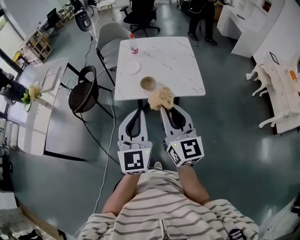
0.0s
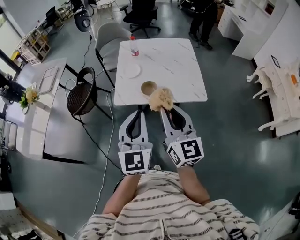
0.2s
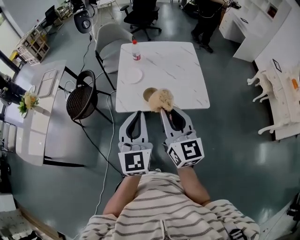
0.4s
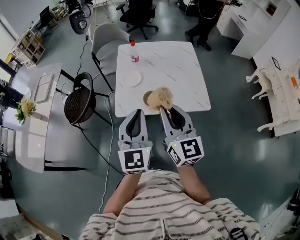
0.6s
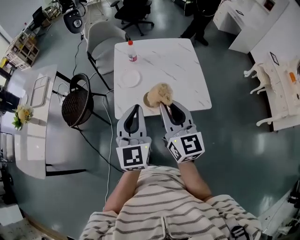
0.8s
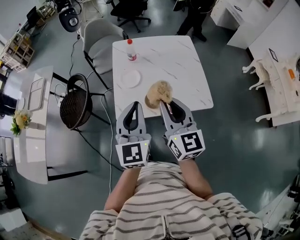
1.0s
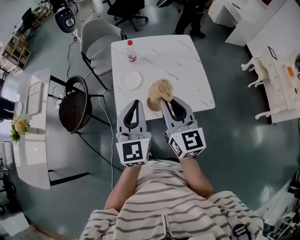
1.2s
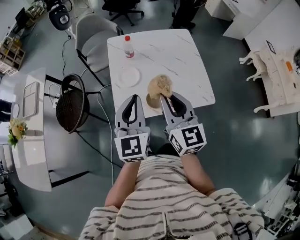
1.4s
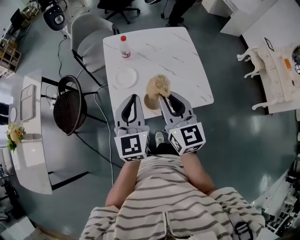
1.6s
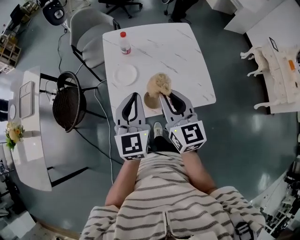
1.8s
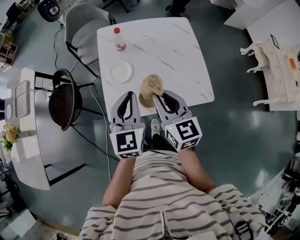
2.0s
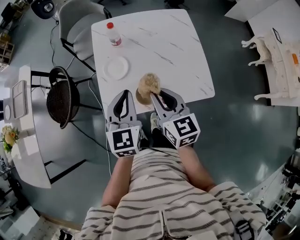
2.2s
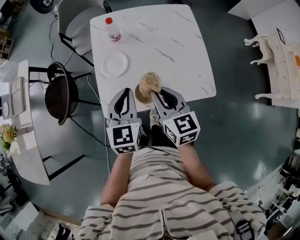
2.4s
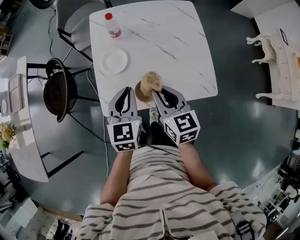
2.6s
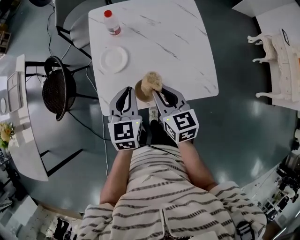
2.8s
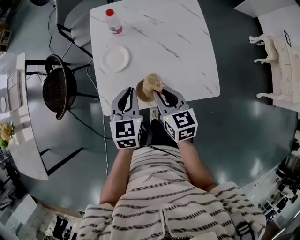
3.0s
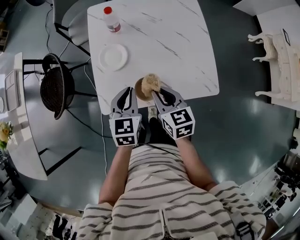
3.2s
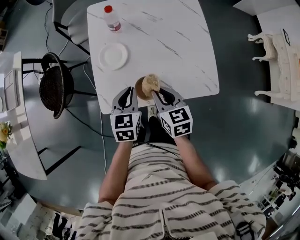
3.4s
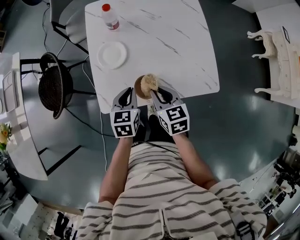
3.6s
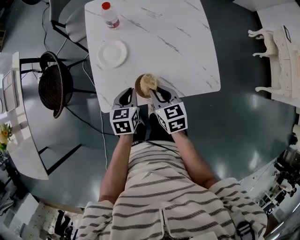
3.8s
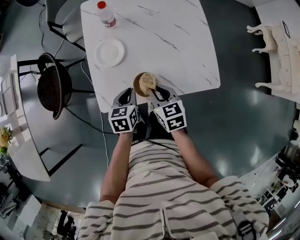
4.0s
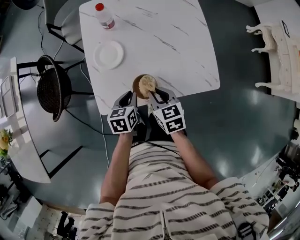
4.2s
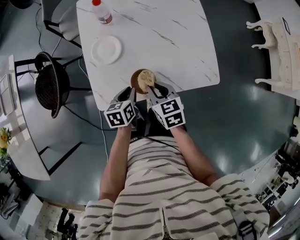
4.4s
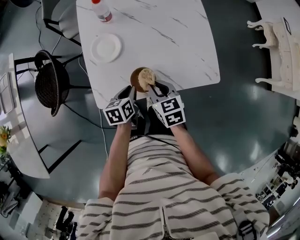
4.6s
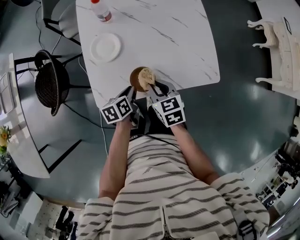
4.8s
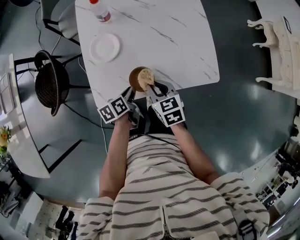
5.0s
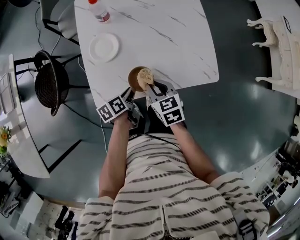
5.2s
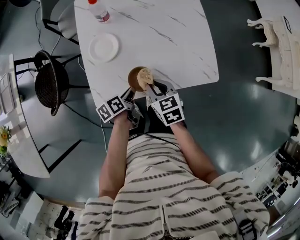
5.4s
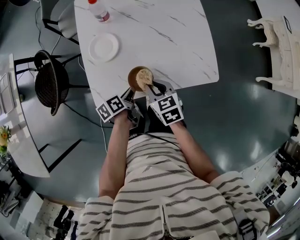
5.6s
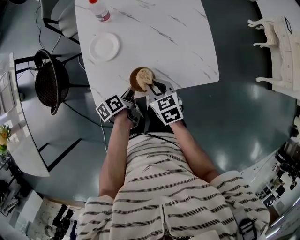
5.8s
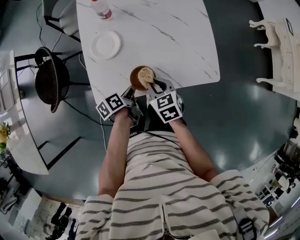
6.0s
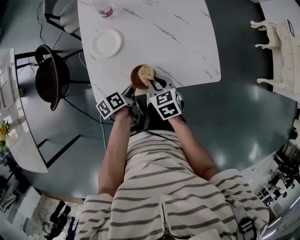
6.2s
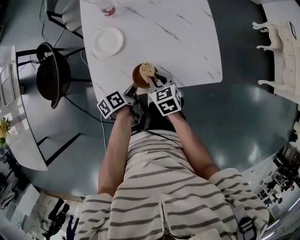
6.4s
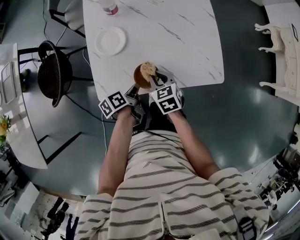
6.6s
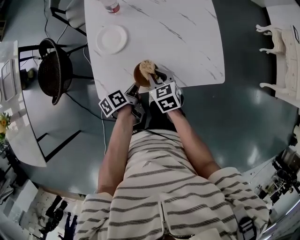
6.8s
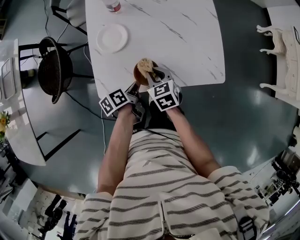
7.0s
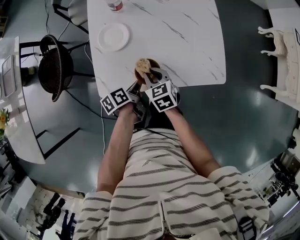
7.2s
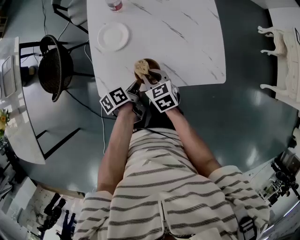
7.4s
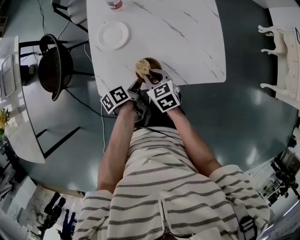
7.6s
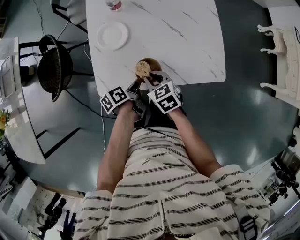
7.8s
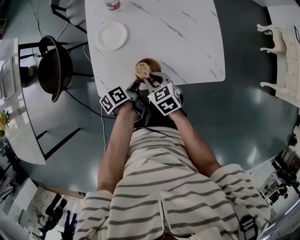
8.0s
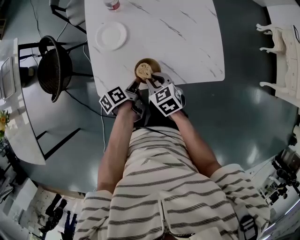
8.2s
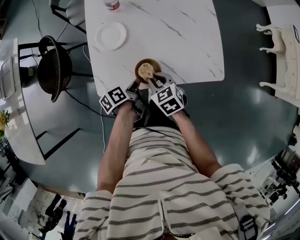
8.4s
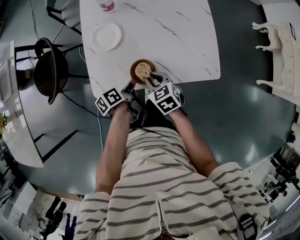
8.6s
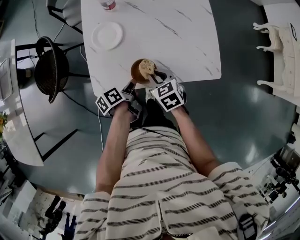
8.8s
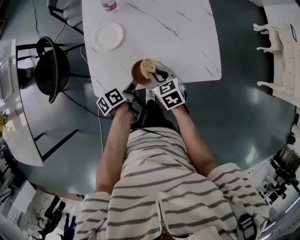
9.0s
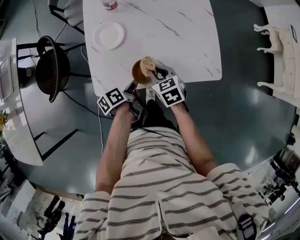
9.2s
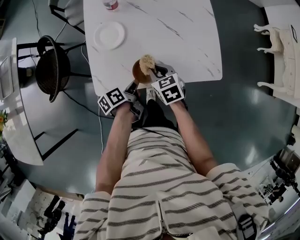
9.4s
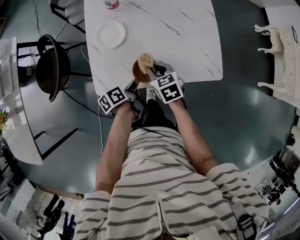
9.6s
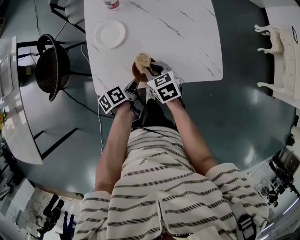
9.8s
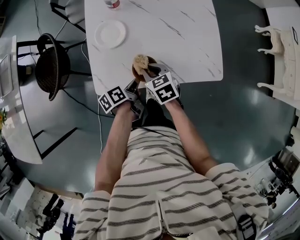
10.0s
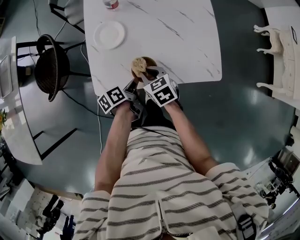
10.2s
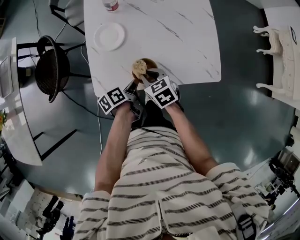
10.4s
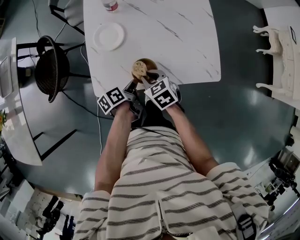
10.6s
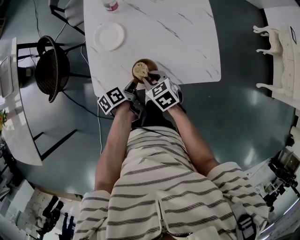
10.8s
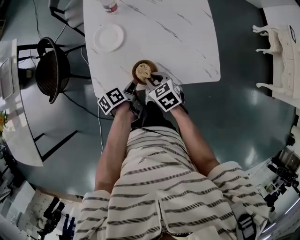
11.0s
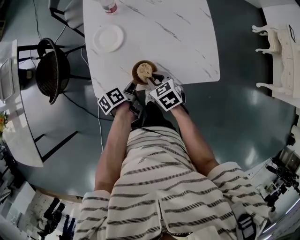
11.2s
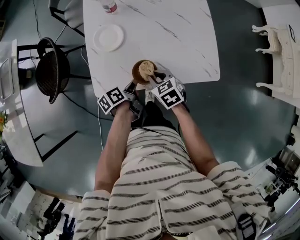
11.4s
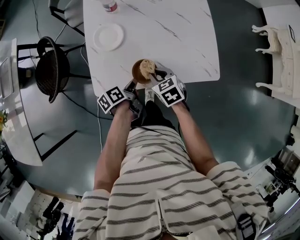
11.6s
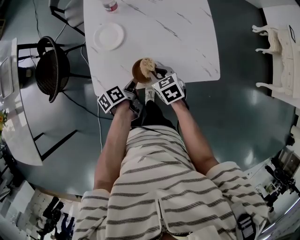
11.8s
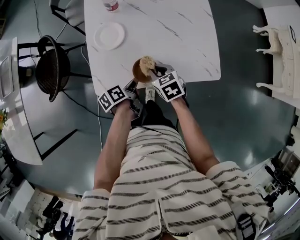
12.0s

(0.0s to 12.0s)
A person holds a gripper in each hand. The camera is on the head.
0.0s - 1.6s: Both grippers move forward, about 30 cm.
1.6s - 3.0s: Both grippers travel together downward, roughly 20 cm. The right gripper rotates approximately 30 degrees. Meanwhile the left gripper swivels some 20 degrees.
3.0s - 4.4s: The left gripper heads downward, covering roughly 15 cm, and swivels approximately 30 degrees; the right gripper shifts roughly 10 cm downward.
4.4s - 6.0s: The left gripper swivels about 40 degrees.
6.0s - 12.0s: The grippers move only a little.

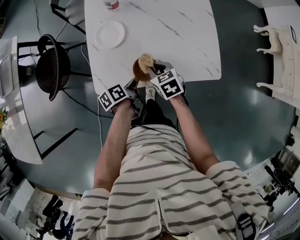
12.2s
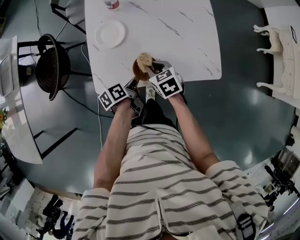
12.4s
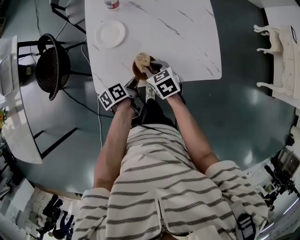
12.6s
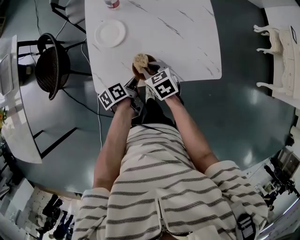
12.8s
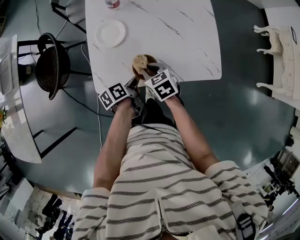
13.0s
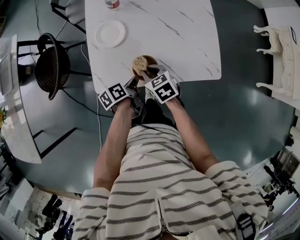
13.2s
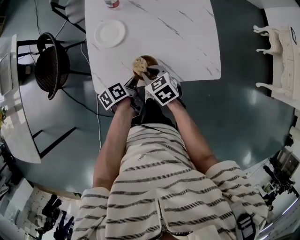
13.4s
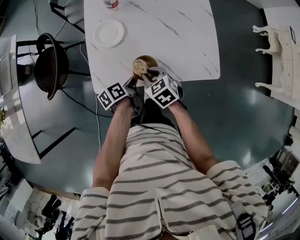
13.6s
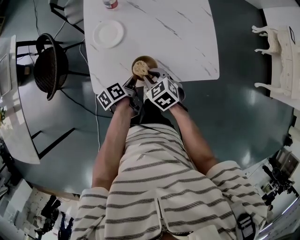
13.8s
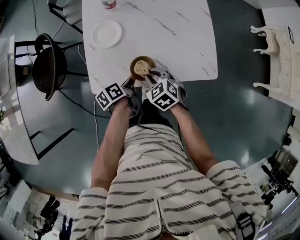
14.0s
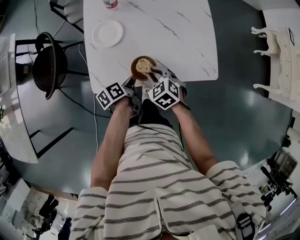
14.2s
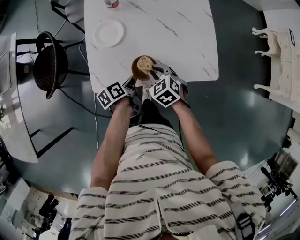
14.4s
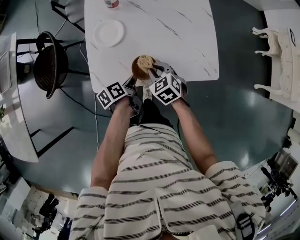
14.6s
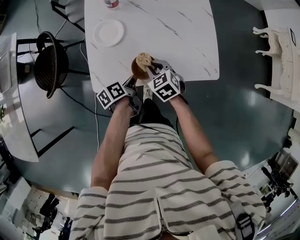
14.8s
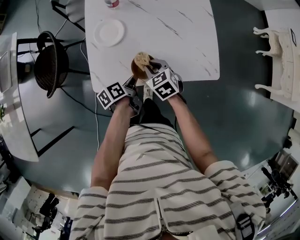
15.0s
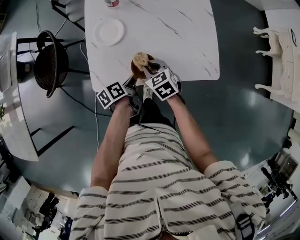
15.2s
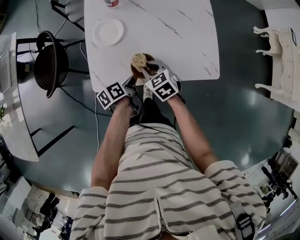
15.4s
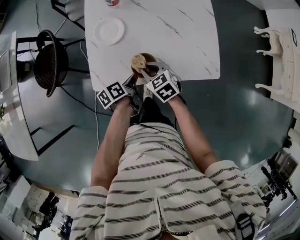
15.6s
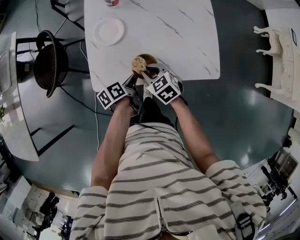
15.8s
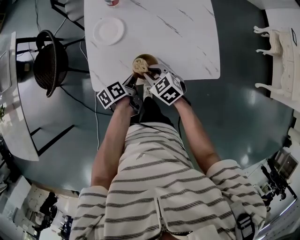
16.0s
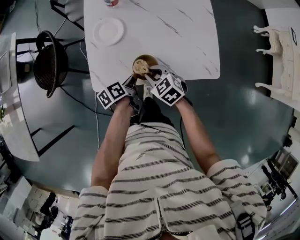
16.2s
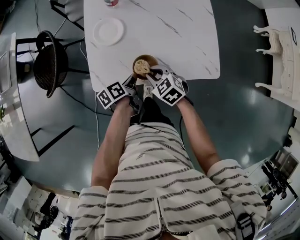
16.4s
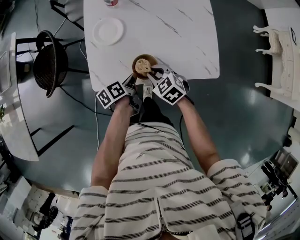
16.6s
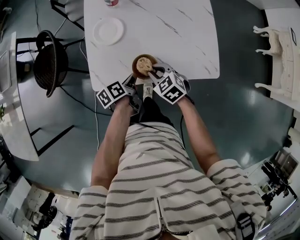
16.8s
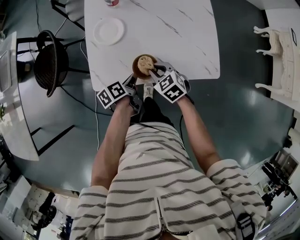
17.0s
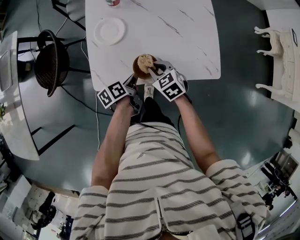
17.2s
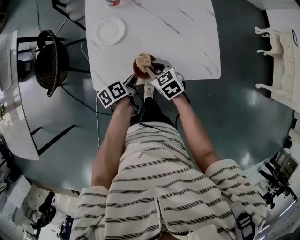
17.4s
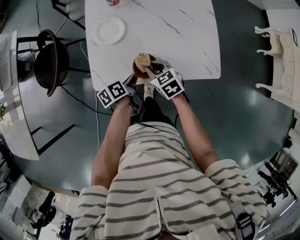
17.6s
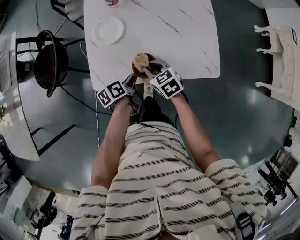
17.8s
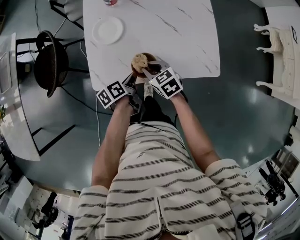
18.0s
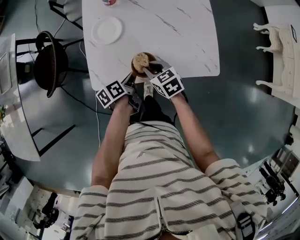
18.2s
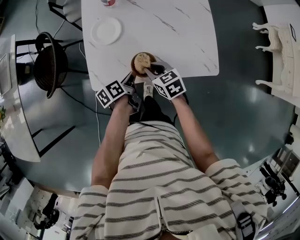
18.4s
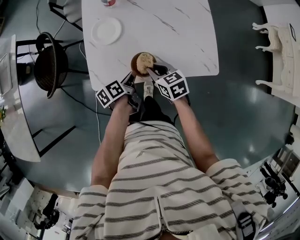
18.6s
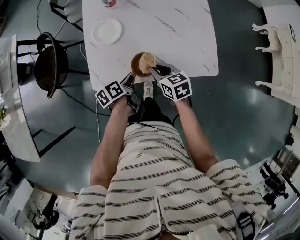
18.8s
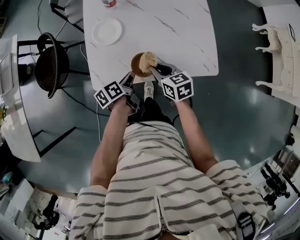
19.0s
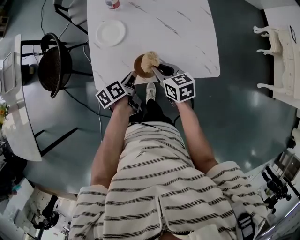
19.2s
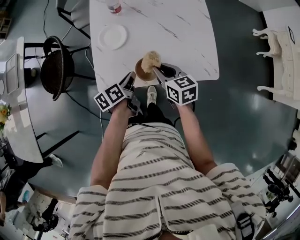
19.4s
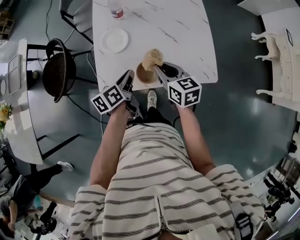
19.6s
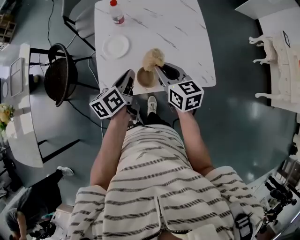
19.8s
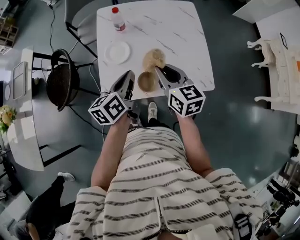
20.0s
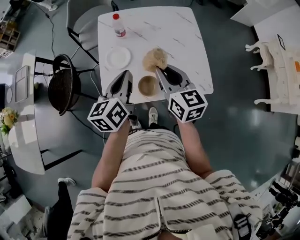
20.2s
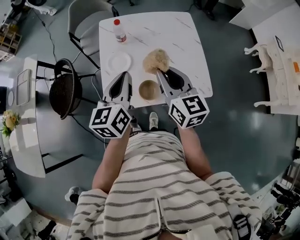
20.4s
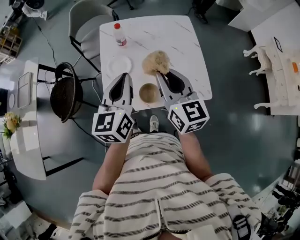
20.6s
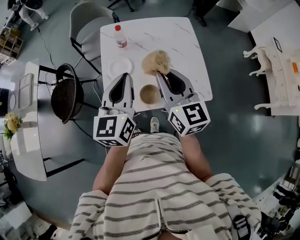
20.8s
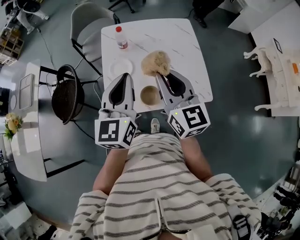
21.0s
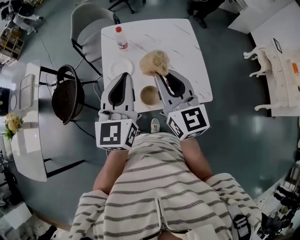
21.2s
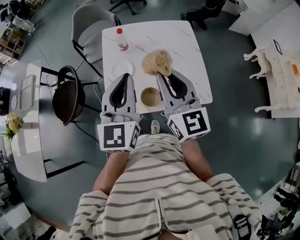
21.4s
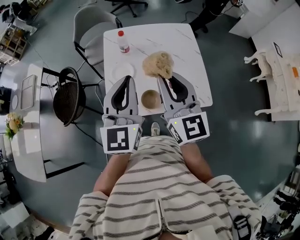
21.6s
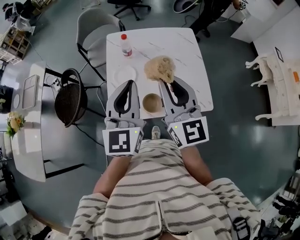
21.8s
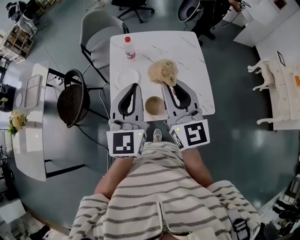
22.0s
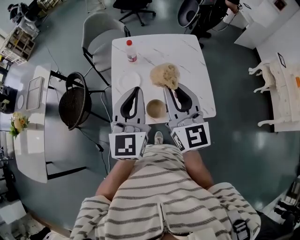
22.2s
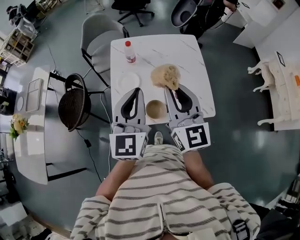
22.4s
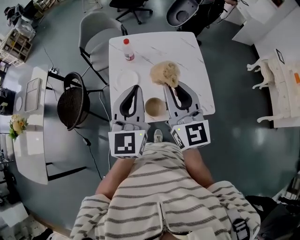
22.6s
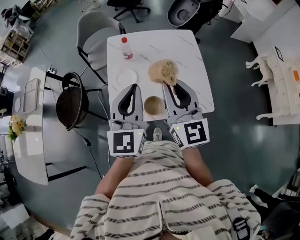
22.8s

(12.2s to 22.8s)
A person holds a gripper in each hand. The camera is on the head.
12.2s - 13.8s: The grippers move only a little.
13.8s - 16.8s: The grippers make only small movements.
16.8s - 18.2s: The right gripper changes its angle by roughly 20 degrees.
18.2s - 19.8s: Both grippers travel together upward, approximately 20 cm. The right gripper rotates roughly 30 degrees. Meanwhile the left gripper changes its angle by about 30 degrees.
19.8s - 21.2s: The grippers both shift upward by approximately 20 cm. The right gripper turns by roughly 30 degrees. Meanwhile the left gripper rolls clockwise, seen from behind, by approximately 40 degrees.
21.2s - 22.8s: The grippers make only small movements.

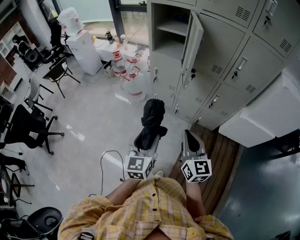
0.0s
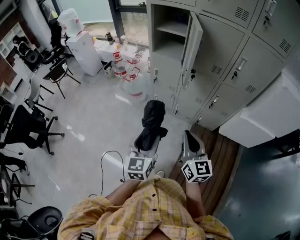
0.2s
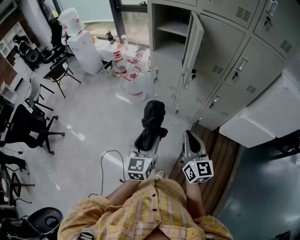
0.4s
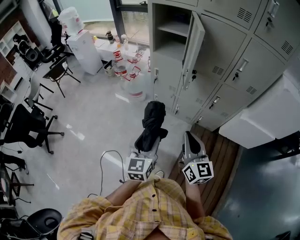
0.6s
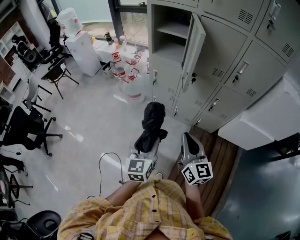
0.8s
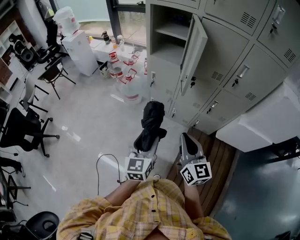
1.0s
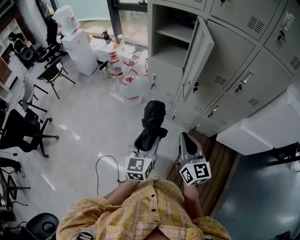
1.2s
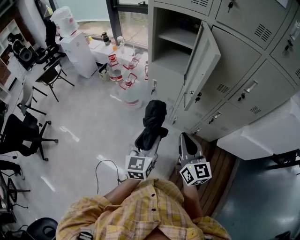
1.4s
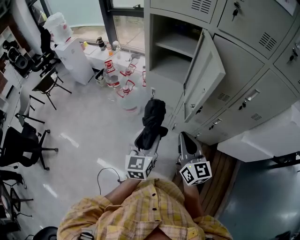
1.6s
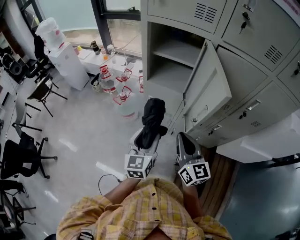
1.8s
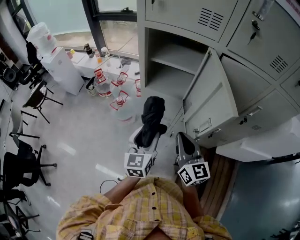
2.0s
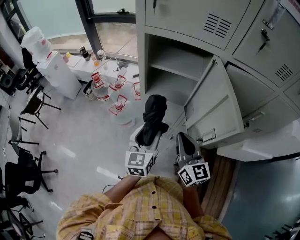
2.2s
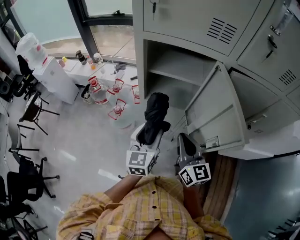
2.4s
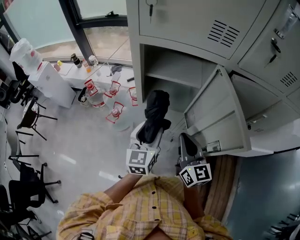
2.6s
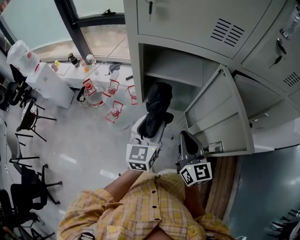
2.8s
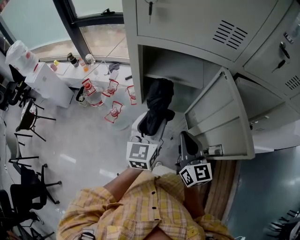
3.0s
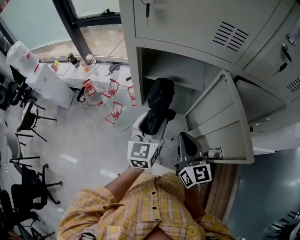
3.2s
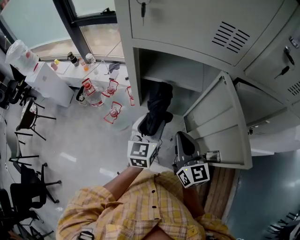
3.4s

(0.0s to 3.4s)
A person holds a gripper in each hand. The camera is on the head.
0.0s - 1.6s: Both grippers travel together forward, about 20 cm.
1.6s - 3.4s: The grippers both shift forward by some 30 cm.
